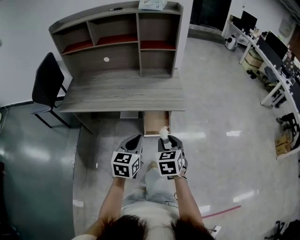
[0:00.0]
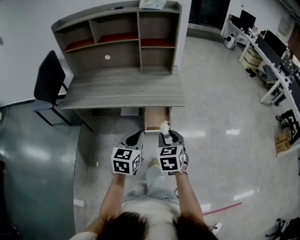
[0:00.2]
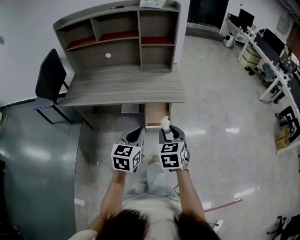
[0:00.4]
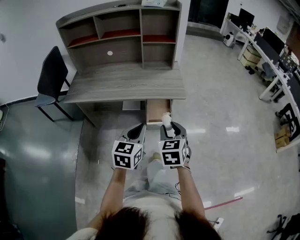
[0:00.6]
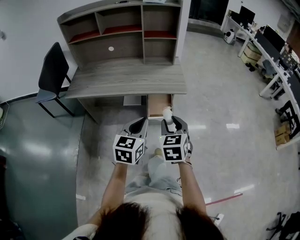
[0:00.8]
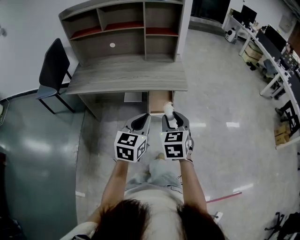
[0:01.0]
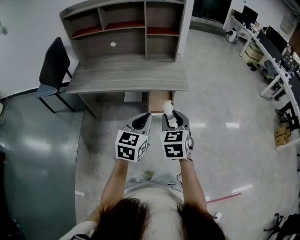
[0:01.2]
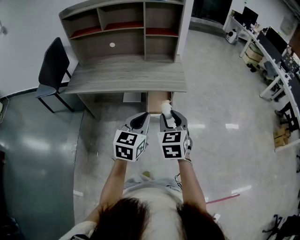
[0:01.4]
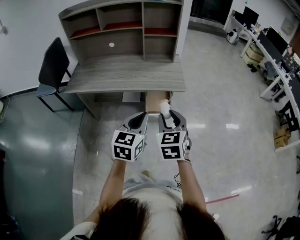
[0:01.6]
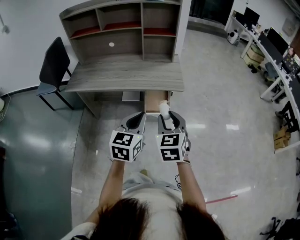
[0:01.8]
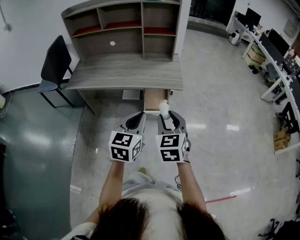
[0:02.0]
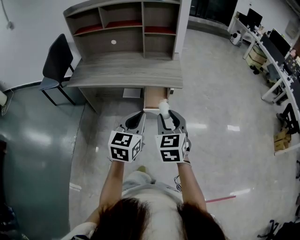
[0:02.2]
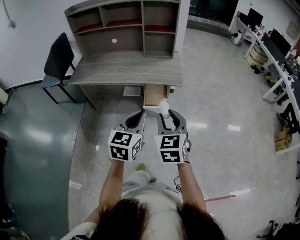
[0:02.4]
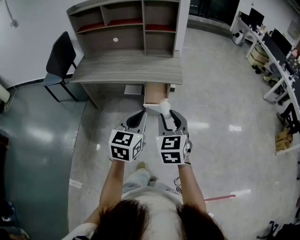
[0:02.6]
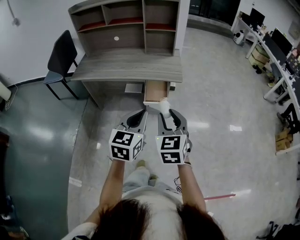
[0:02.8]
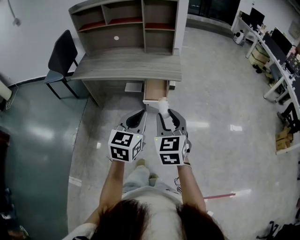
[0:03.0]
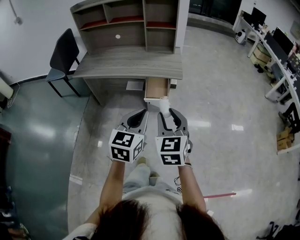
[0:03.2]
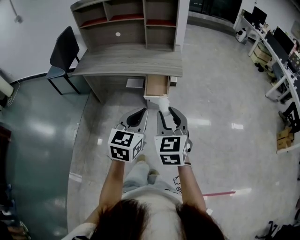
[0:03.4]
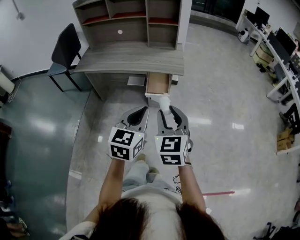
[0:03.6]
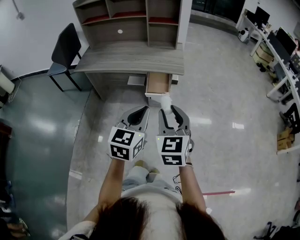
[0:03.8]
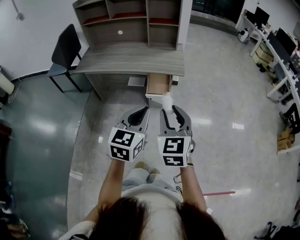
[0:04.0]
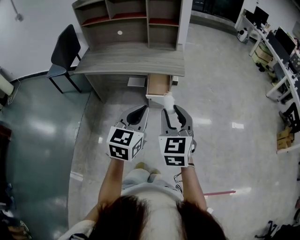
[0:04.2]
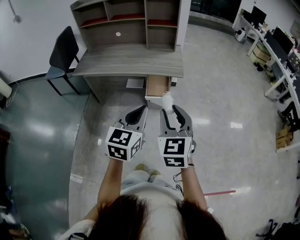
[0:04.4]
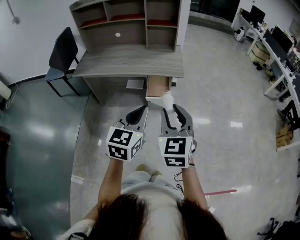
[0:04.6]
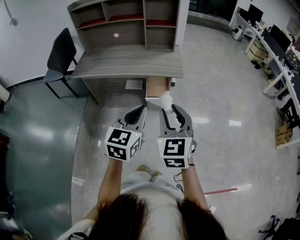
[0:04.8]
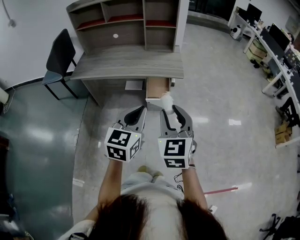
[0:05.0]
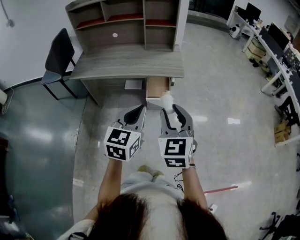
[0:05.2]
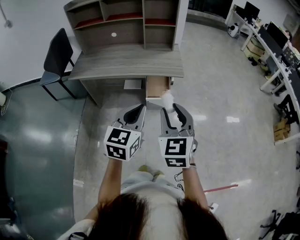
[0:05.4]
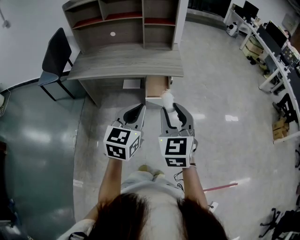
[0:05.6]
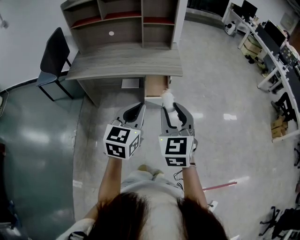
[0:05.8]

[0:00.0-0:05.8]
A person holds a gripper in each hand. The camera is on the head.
0:00.0 to 0:01.4: The right gripper heads upward and backward, covering some 10 cm. Meanwhile the left gripper moves backward and upward, about 10 cm.
0:01.4 to 0:02.8: Both grippers move backward and to the right, approximately 15 cm.
0:02.8 to 0:04.4: The right gripper ends up about 5 cm from where it was.
0:04.4 to 0:05.8: The grippers both shift to the left by about 5 cm.

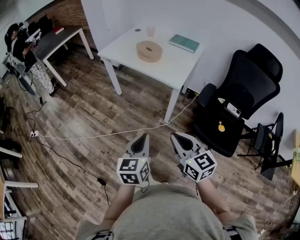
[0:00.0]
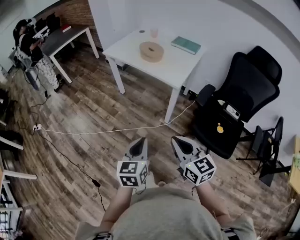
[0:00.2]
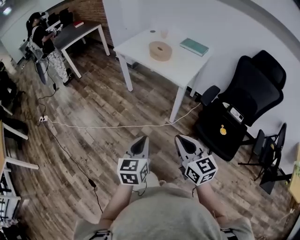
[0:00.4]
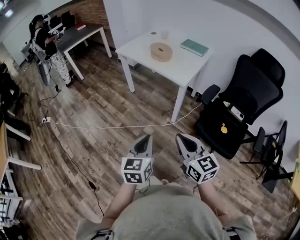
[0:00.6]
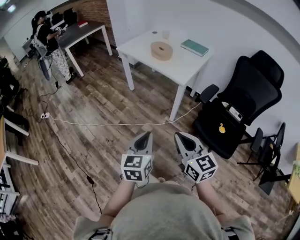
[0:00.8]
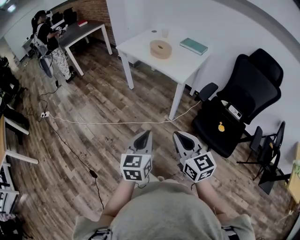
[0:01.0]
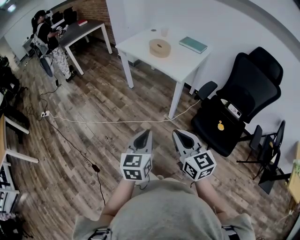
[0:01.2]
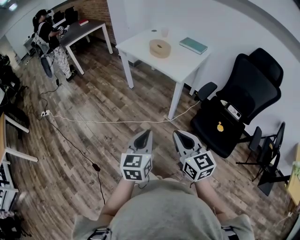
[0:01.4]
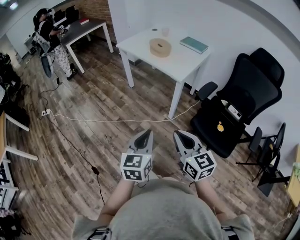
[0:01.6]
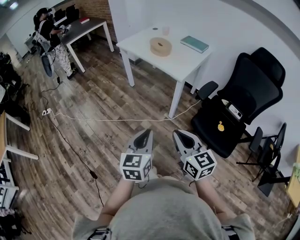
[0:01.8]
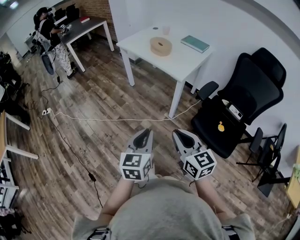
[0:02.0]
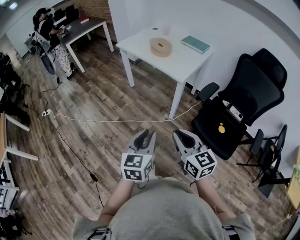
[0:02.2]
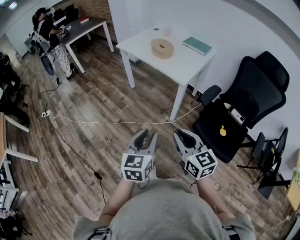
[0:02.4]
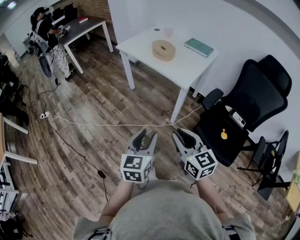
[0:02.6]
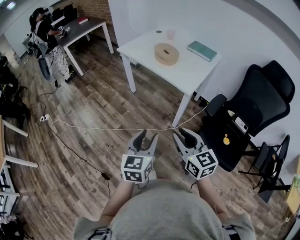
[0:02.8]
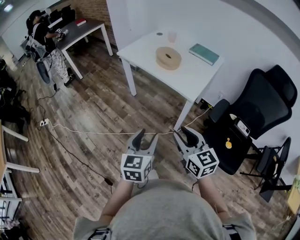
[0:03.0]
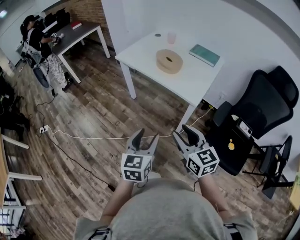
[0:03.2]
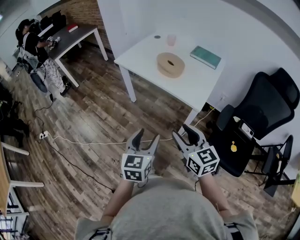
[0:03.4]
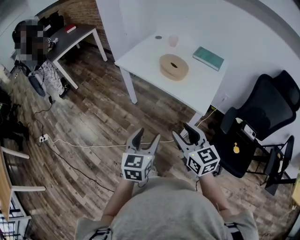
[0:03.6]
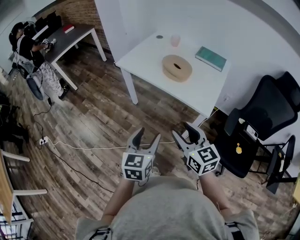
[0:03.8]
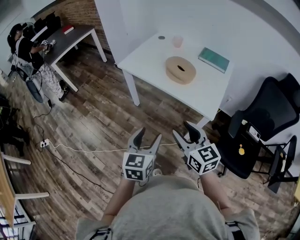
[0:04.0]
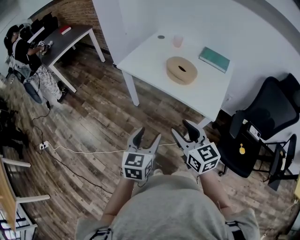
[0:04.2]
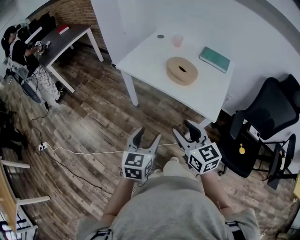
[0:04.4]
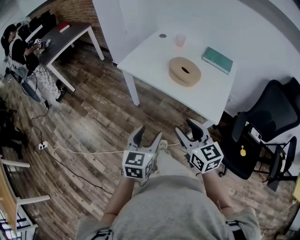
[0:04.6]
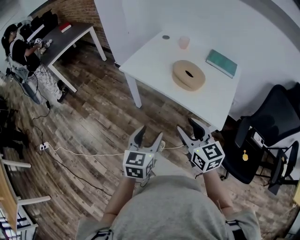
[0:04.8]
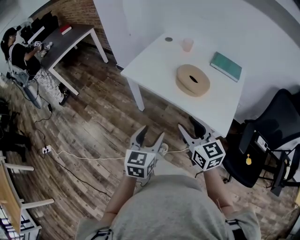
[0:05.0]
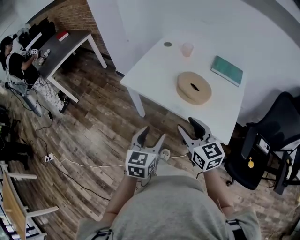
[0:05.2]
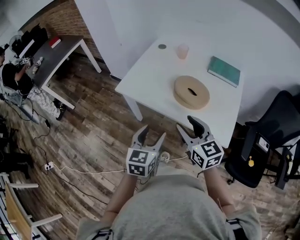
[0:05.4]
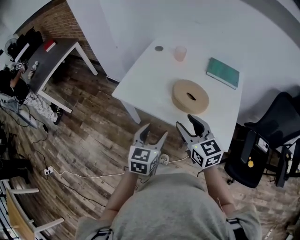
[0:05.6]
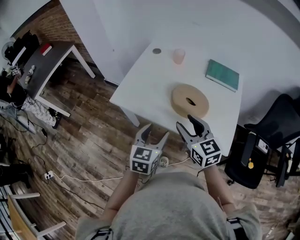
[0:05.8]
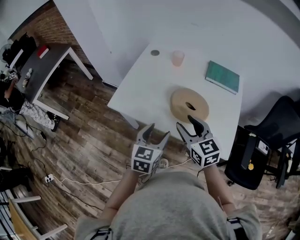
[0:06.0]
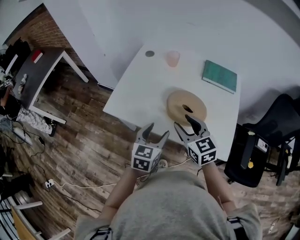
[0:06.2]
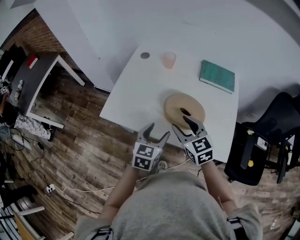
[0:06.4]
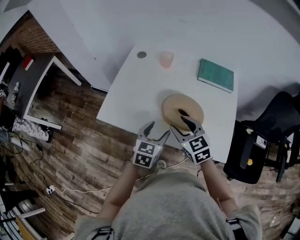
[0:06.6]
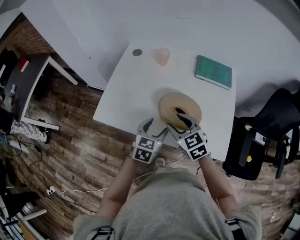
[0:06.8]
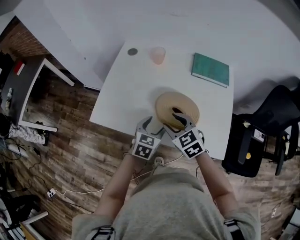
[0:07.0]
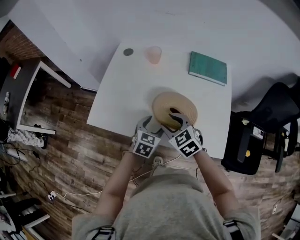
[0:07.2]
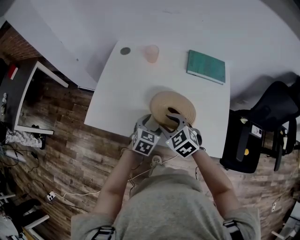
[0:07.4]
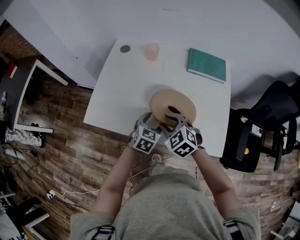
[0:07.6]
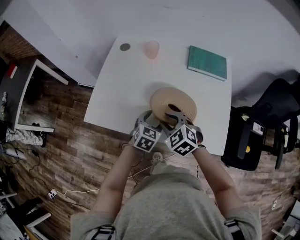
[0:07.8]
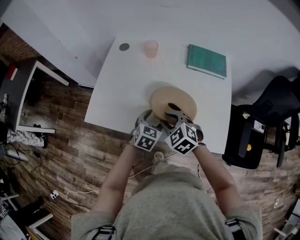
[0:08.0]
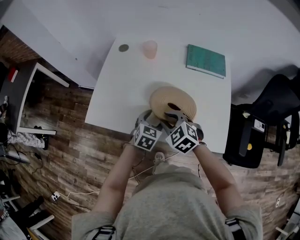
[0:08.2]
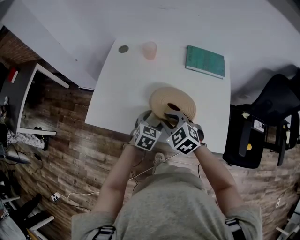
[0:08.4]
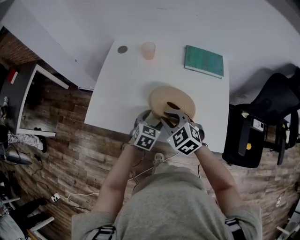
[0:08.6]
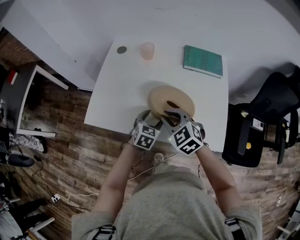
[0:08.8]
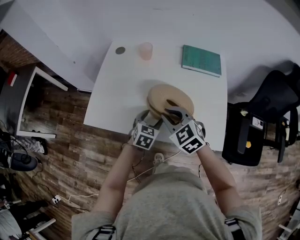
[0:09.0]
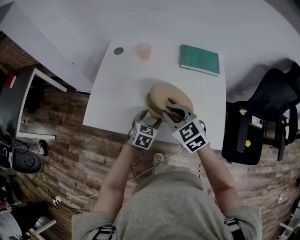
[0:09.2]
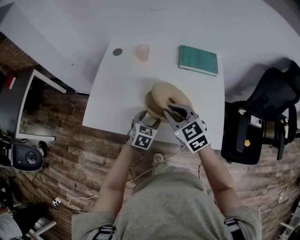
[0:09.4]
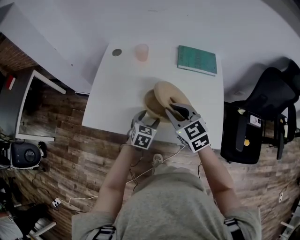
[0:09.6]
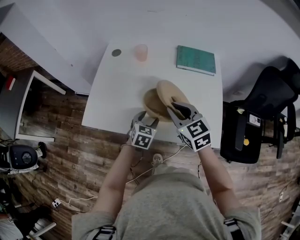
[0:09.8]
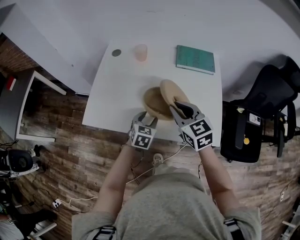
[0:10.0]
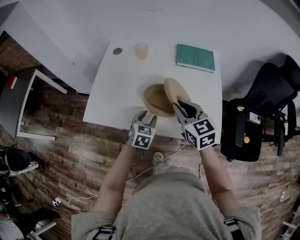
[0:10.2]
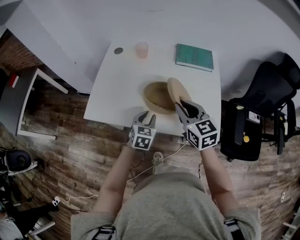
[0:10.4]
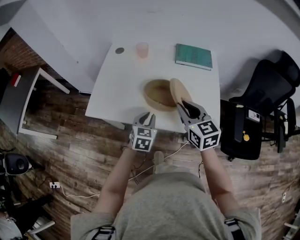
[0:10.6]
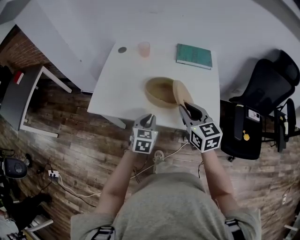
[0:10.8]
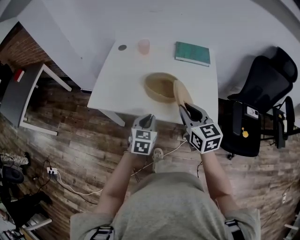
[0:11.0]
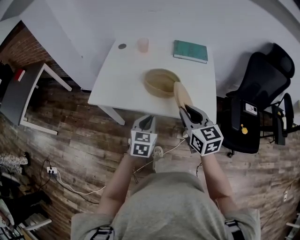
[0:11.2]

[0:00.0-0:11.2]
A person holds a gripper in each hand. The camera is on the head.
0:00.0 to 0:01.6: Both grippers travel together backward, roughly 15 cm.
0:01.6 to 0:03.2: Both grippers move forward, some 25 cm. The right gripper opens. The left gripper opens up.
0:03.2 to 0:04.8: Both grippers travel together forward and to the left, some 25 cm.
0:04.8 to 0:06.4: The two grippers go about 30 cm forward. The left gripper rotates roughly 20 degrees.
0:06.4 to 0:08.0: The right gripper travels downward by about 10 cm, and rotates some 30 degrees. The left gripper travels downward and forward by roughly 15 cm, and rotates approximately 20 degrees.
0:08.0 to 0:09.6: The right gripper heads upward and to the right, covering some 10 cm, and swivels about 30 degrees.
0:09.6 to 0:11.2: The left gripper shifts approximately 20 cm backward and upward, and closes, while the right gripper goes about 20 cm backward, and turns by some 20 degrees.

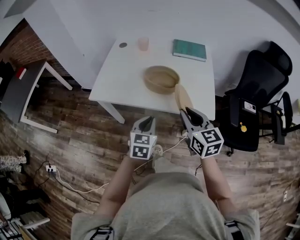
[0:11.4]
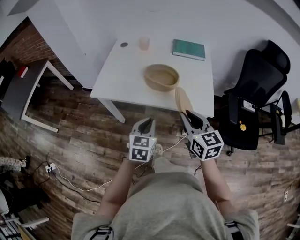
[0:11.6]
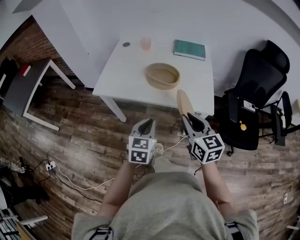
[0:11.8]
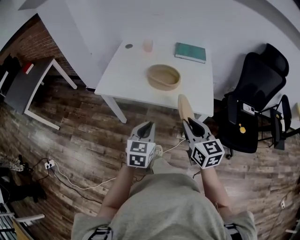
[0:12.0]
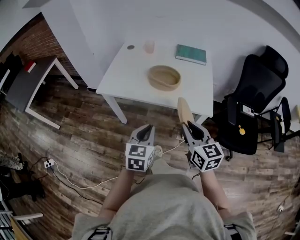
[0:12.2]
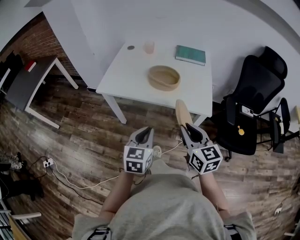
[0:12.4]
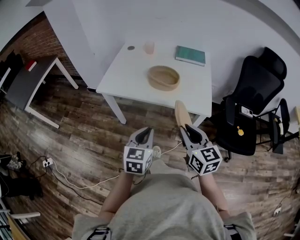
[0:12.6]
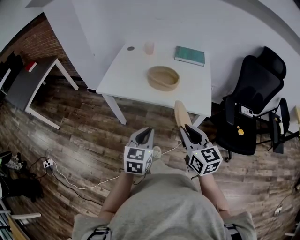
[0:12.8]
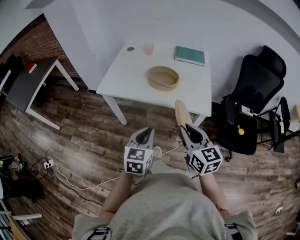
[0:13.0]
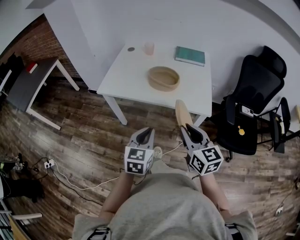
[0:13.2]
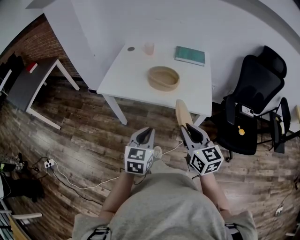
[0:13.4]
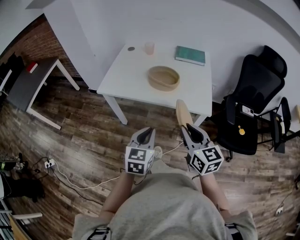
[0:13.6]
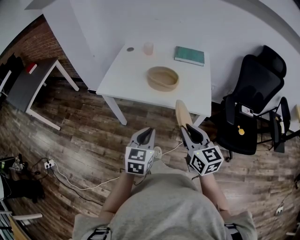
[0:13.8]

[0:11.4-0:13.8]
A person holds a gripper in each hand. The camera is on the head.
0:11.4 to 0:12.6: The left gripper shifts about 15 cm backward and upward. The right gripper heads backward, covering approximately 15 cm.
0:12.6 to 0:13.8: The two grippers keep their place.

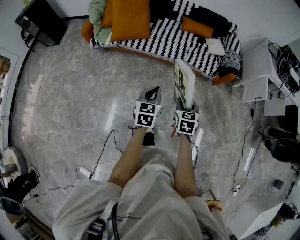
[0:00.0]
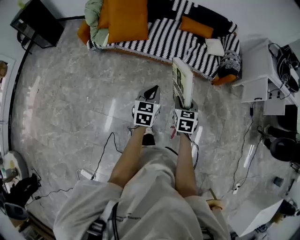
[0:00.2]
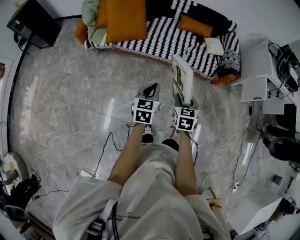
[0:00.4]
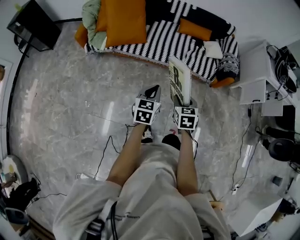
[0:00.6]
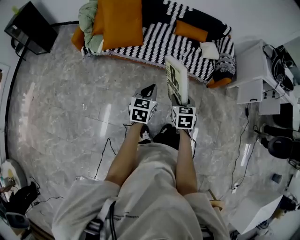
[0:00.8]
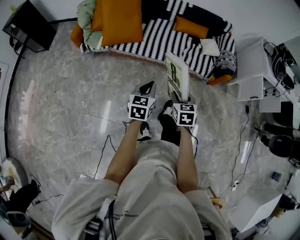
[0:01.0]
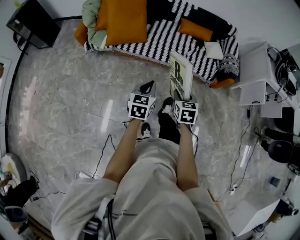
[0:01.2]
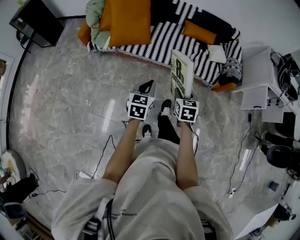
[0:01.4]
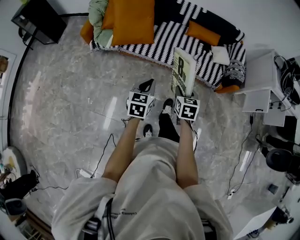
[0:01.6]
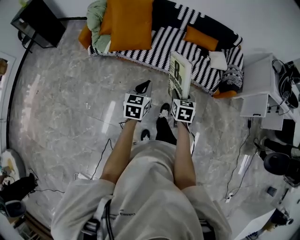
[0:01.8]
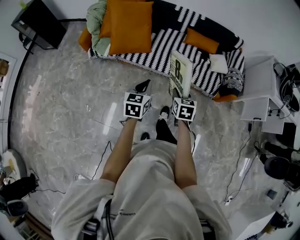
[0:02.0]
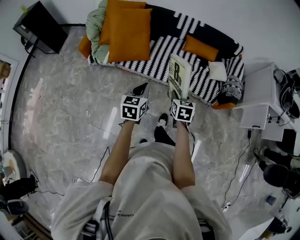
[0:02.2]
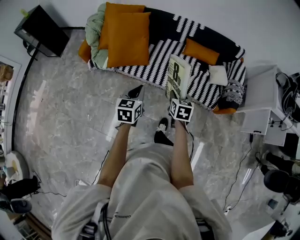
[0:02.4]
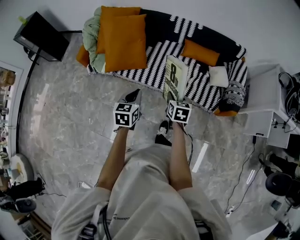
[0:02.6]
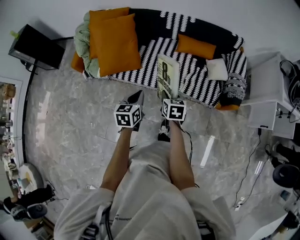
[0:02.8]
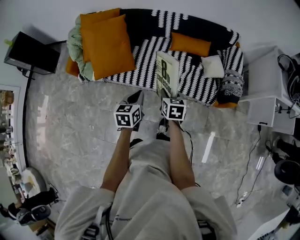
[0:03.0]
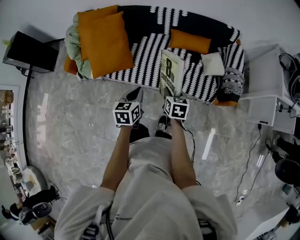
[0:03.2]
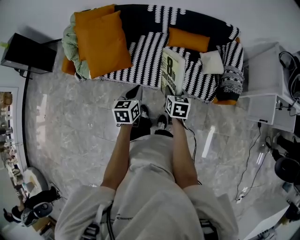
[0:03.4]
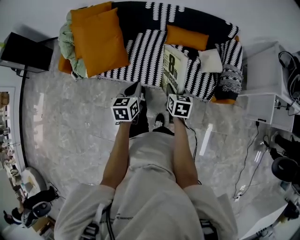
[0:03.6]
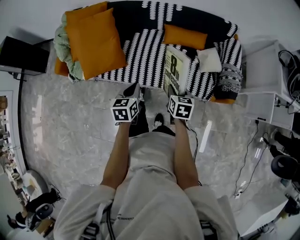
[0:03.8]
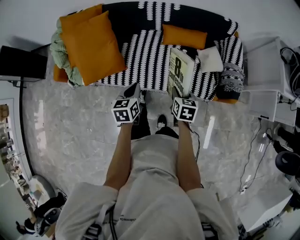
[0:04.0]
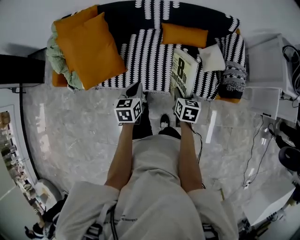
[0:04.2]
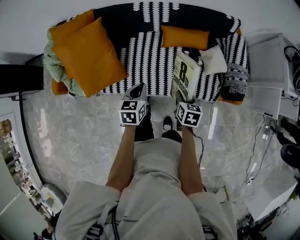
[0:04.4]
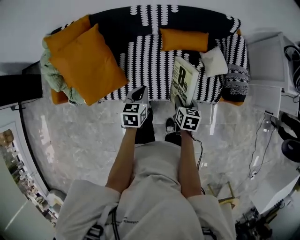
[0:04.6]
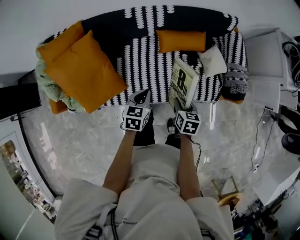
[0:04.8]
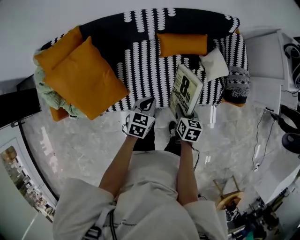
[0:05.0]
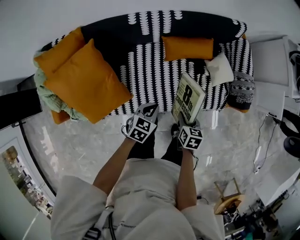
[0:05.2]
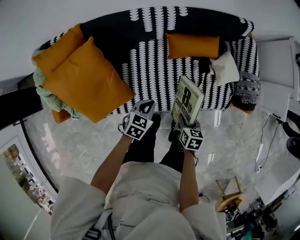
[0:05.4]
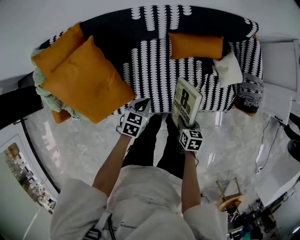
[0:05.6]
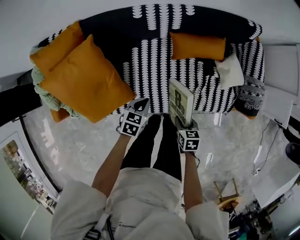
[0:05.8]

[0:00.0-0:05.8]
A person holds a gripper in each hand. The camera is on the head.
0:00.0 to 0:01.4: Both grippers move forward and to the left, some 15 cm.
0:01.4 to 0:02.8: Both grippers travel together forward, roughly 25 cm.
0:02.8 to 0:04.4: The left gripper heads forward, covering some 20 cm, while the right gripper shifts about 20 cm forward, to the right and downward.
0:04.4 to 0:05.8: The left gripper moves downward, forward and to the left, some 20 cm, and swivels some 30 degrees. The right gripper travels downward and to the left by roughly 15 cm.
